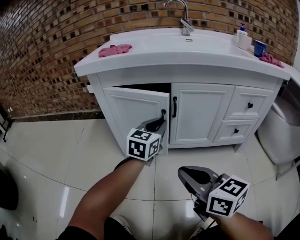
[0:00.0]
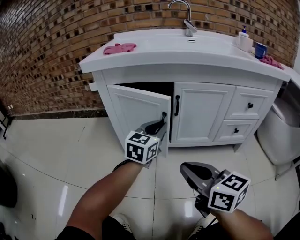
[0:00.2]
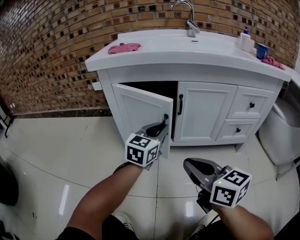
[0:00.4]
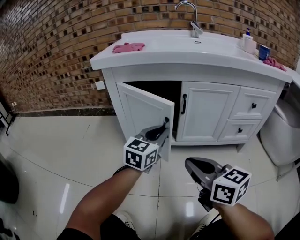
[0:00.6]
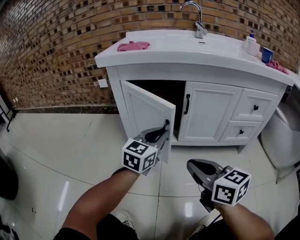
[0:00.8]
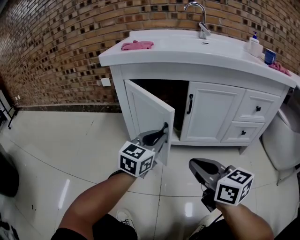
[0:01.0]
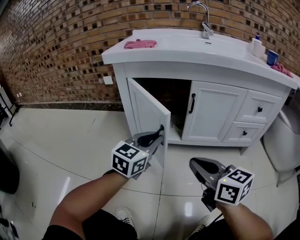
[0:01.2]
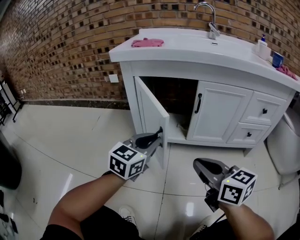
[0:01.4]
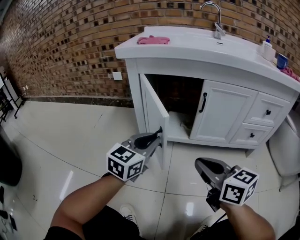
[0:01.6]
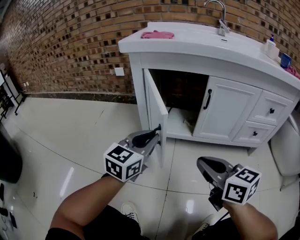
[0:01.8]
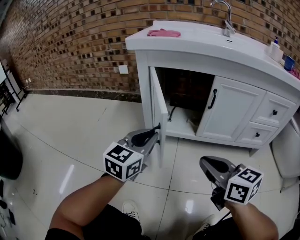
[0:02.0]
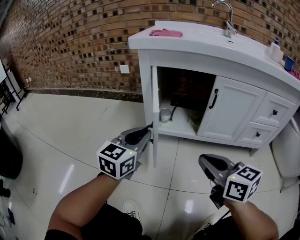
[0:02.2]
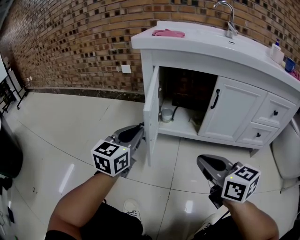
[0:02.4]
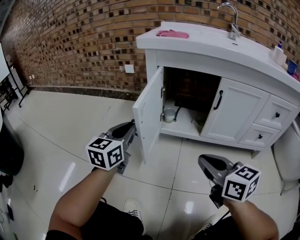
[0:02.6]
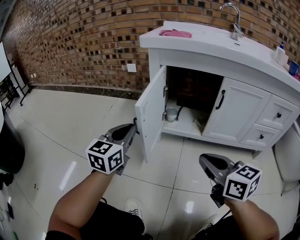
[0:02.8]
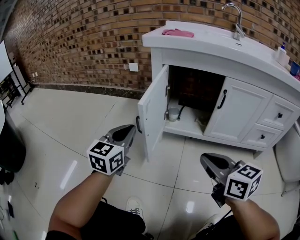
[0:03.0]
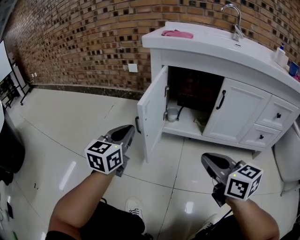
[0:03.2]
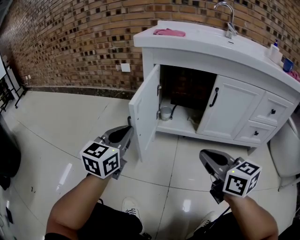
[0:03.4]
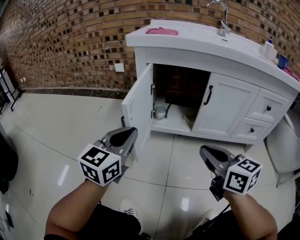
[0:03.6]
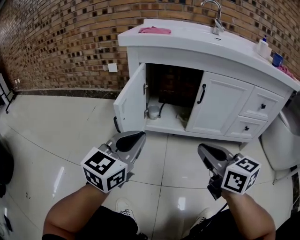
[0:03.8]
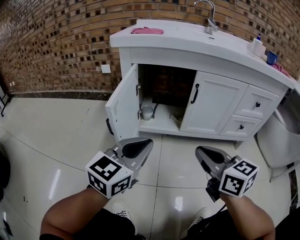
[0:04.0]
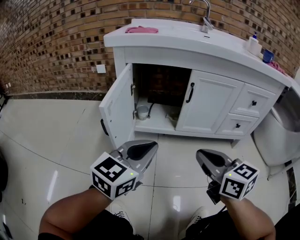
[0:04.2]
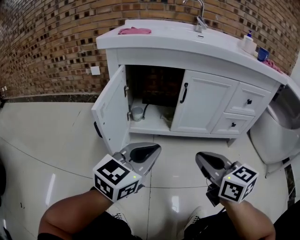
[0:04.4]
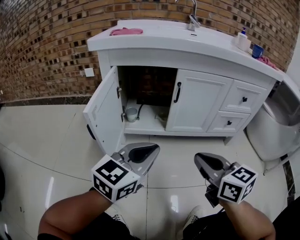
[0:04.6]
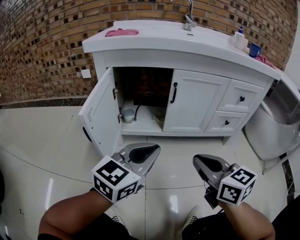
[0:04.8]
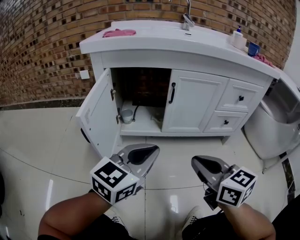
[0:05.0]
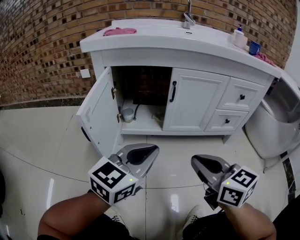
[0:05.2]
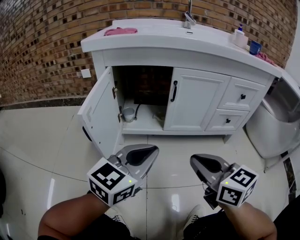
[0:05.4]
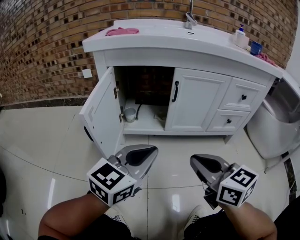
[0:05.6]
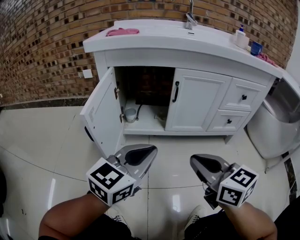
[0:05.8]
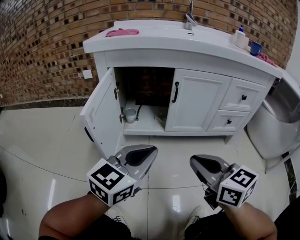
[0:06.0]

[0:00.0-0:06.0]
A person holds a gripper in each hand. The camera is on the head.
0:00.0 to 0:01.6: The left gripper is displaced to the left and backward by roughly 20 cm.
0:01.6 to 0:03.0: The right gripper moves to the left, about 5 cm. The left gripper moves to the left, approximately 15 cm.
0:03.0 to 0:04.4: The left gripper goes roughly 20 cm to the right, and turns by about 30 degrees. Meanwhile the right gripper heads to the right, covering roughly 10 cm.
0:04.4 to 0:06.0: The grippers move only a little.

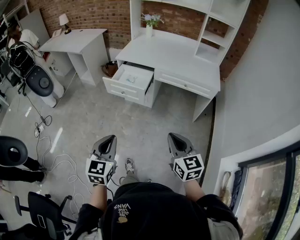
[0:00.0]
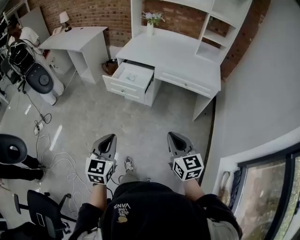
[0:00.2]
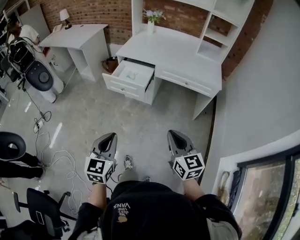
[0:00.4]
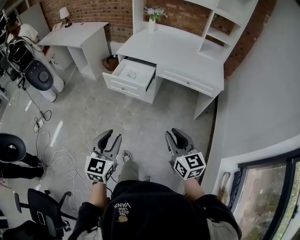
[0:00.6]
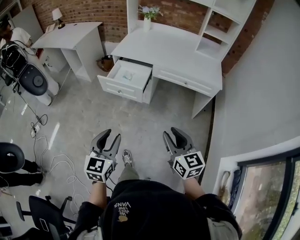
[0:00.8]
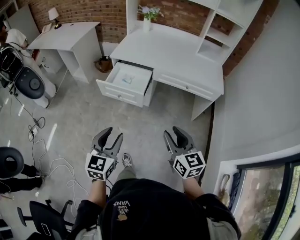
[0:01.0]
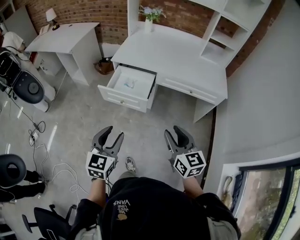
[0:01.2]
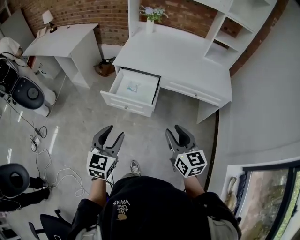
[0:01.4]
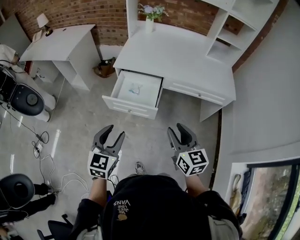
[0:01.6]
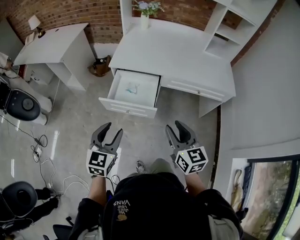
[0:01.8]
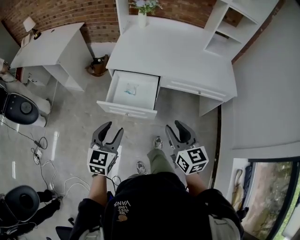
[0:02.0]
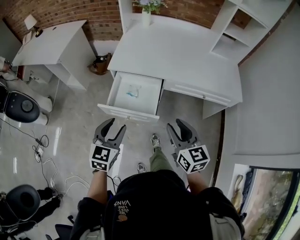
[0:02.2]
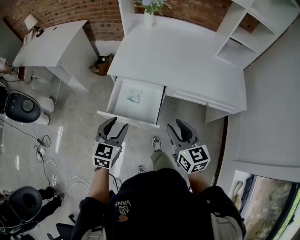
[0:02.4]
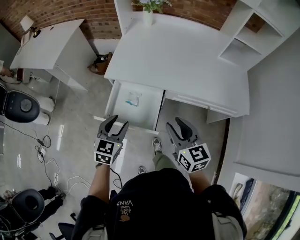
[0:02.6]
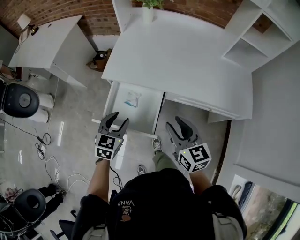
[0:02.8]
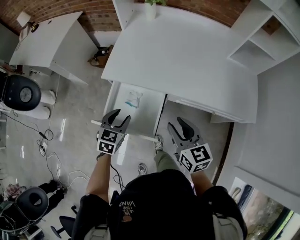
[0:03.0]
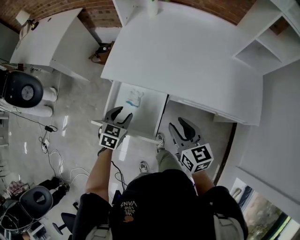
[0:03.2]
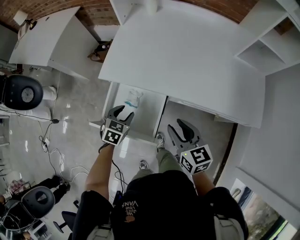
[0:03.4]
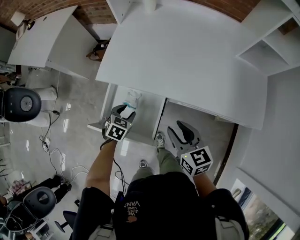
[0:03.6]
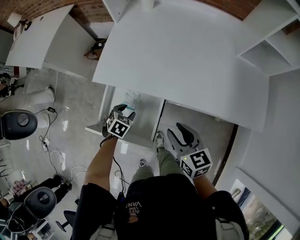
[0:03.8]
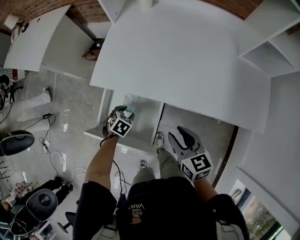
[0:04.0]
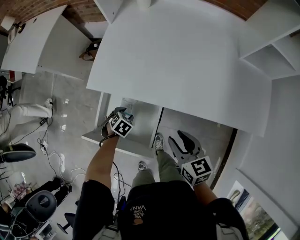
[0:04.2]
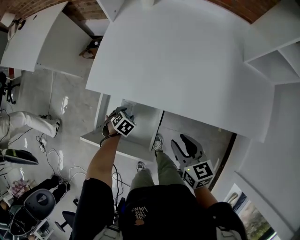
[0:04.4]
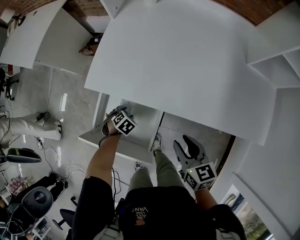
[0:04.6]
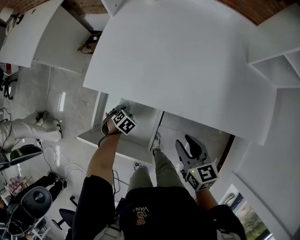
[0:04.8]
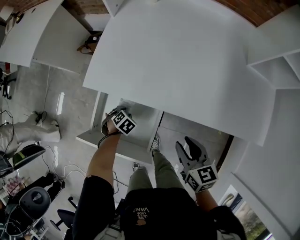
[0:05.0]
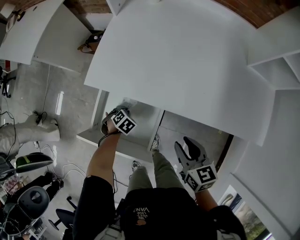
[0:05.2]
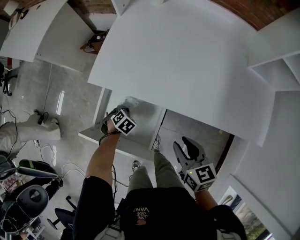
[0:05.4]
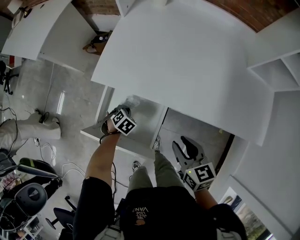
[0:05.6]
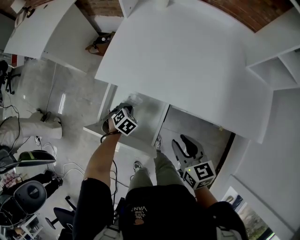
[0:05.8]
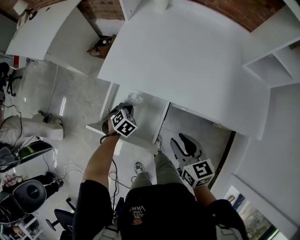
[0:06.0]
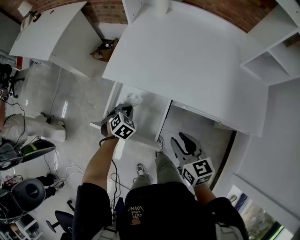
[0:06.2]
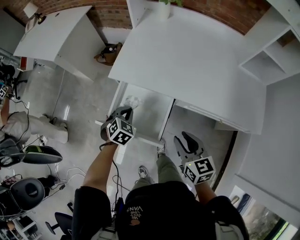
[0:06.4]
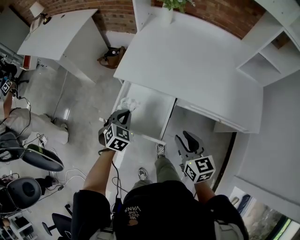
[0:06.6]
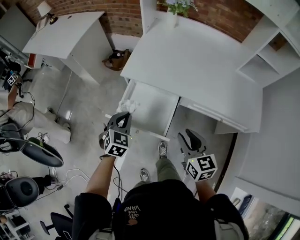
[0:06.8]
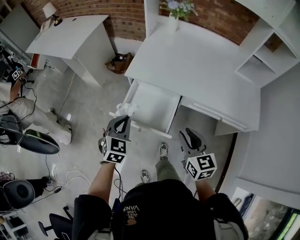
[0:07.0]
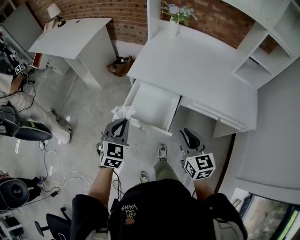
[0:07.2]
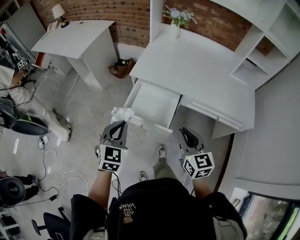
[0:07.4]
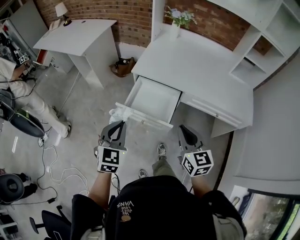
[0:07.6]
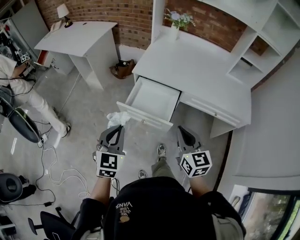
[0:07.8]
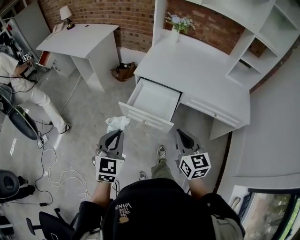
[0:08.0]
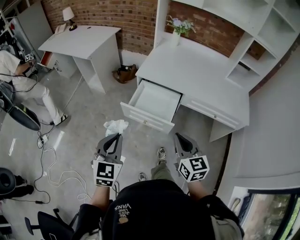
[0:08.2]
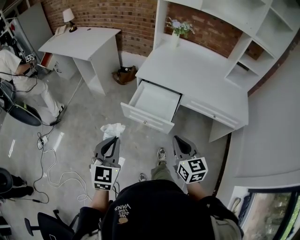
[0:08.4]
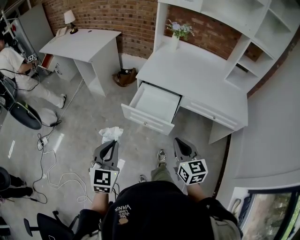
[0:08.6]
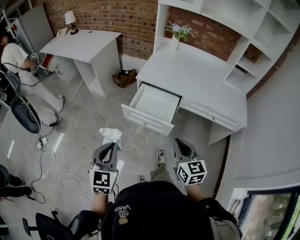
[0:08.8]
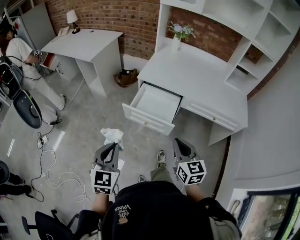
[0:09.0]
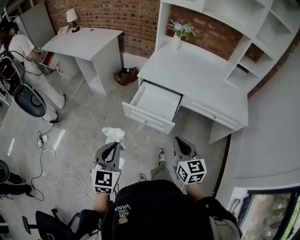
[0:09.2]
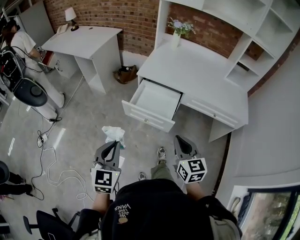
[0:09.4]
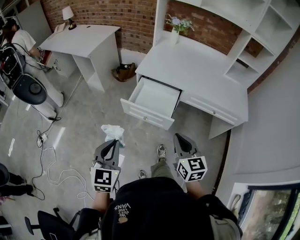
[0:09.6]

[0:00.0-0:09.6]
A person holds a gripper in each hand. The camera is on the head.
0:00.0 to 0:01.6: Both grippers move forward, about 30 cm. The left gripper opens up. The right gripper opens up.
0:01.6 to 0:03.2: The left gripper is displaced forward and downward by roughly 40 cm, and turns by about 30 degrees. The right gripper travels forward by some 30 cm.
0:03.2 to 0:04.8: The right gripper heads downward, covering roughly 10 cm. Meanwhile the left gripper heads downward, covering roughly 25 cm, and tips its fingers downward by approximately 40 degrees.
0:04.8 to 0:06.4: The right gripper moves roughly 15 cm, while the left gripper is displaced upward by some 20 cm, turns by roughly 30 degrees, and closes its fingers.
0:06.4 to 0:08.0: The right gripper is displaced backward, upward and to the left by about 25 cm, and closes up; the left gripper shifts some 40 cm backward, upward and to the left, and tilts its fingers approximately 30 degrees upward.
0:08.0 to 0:09.6: The right gripper shifts by about 5 cm. The left gripper travels backward by about 5 cm.

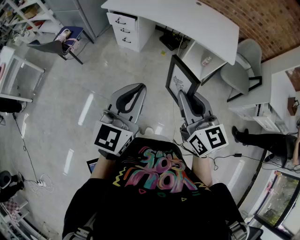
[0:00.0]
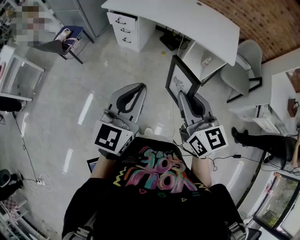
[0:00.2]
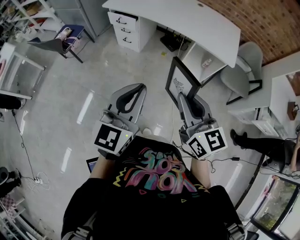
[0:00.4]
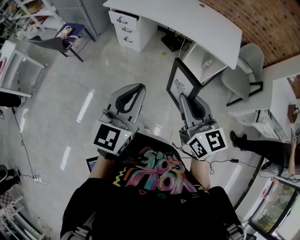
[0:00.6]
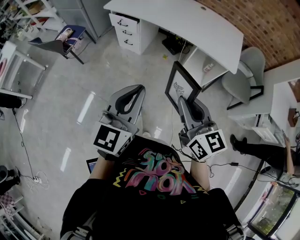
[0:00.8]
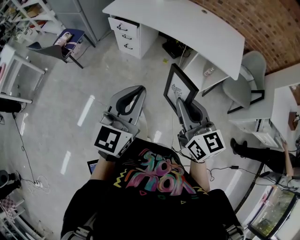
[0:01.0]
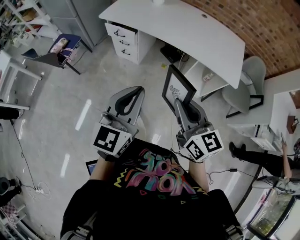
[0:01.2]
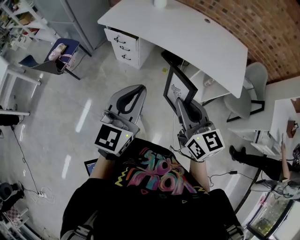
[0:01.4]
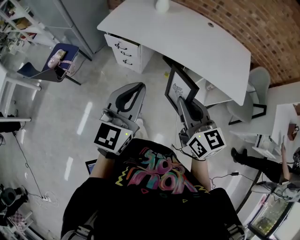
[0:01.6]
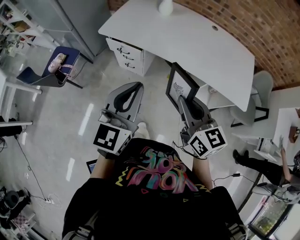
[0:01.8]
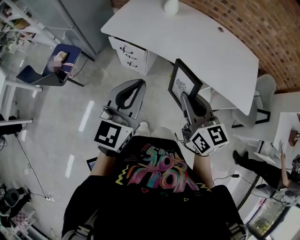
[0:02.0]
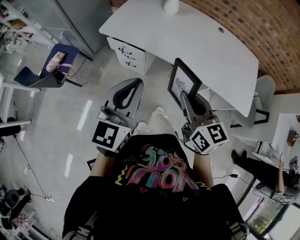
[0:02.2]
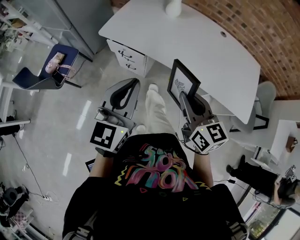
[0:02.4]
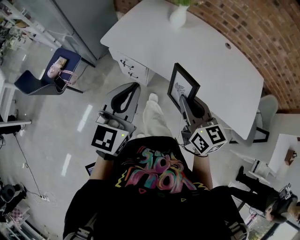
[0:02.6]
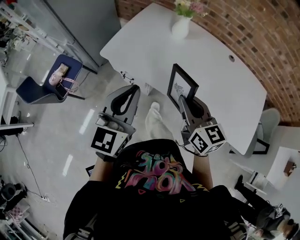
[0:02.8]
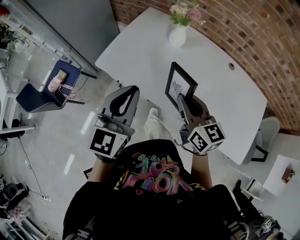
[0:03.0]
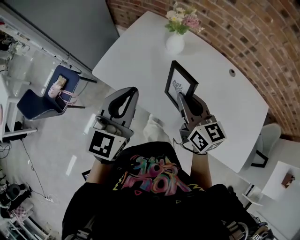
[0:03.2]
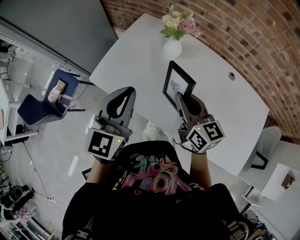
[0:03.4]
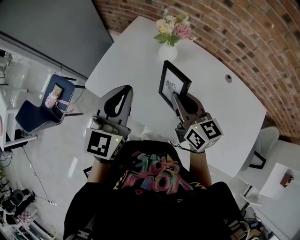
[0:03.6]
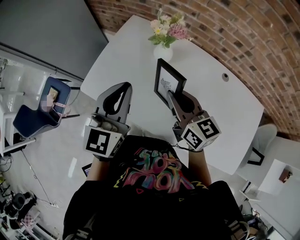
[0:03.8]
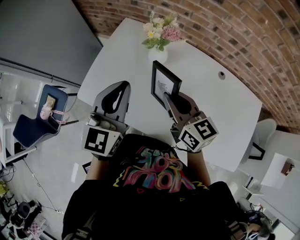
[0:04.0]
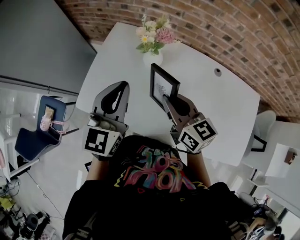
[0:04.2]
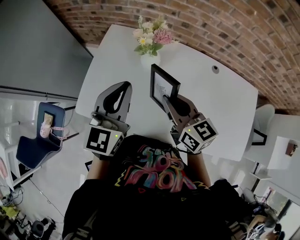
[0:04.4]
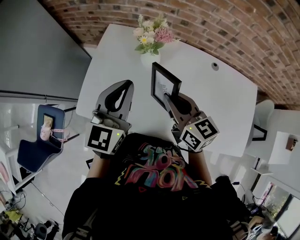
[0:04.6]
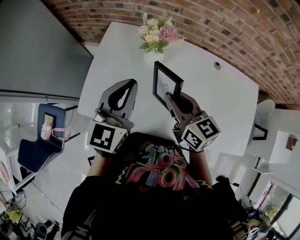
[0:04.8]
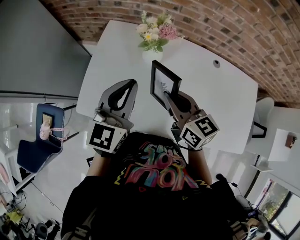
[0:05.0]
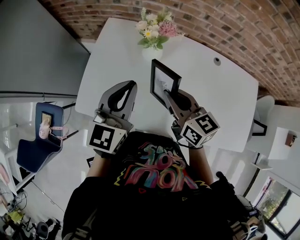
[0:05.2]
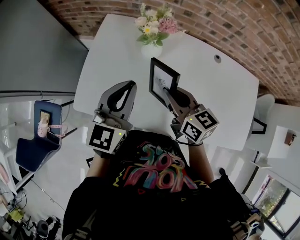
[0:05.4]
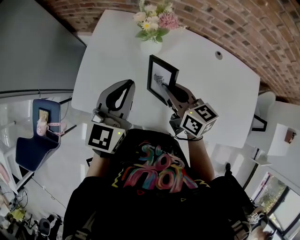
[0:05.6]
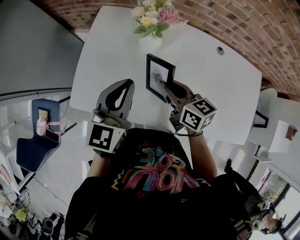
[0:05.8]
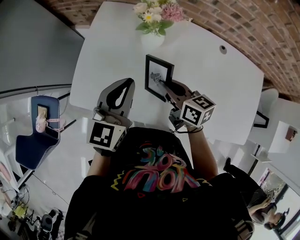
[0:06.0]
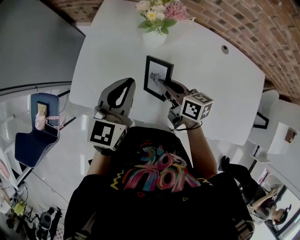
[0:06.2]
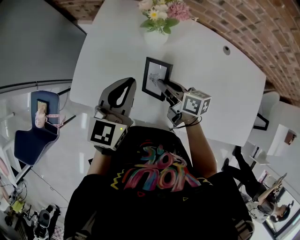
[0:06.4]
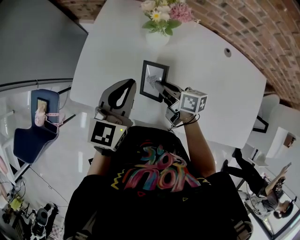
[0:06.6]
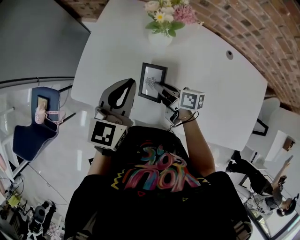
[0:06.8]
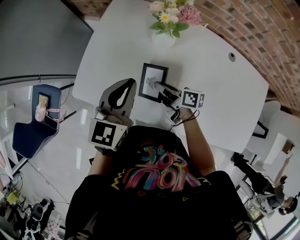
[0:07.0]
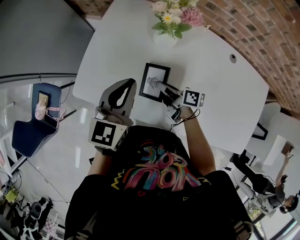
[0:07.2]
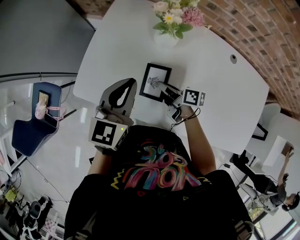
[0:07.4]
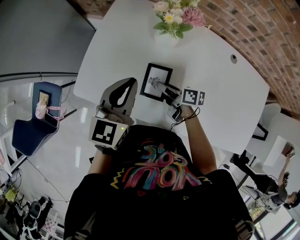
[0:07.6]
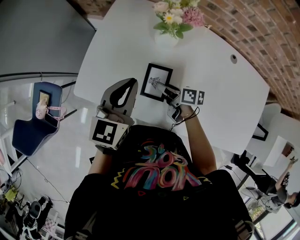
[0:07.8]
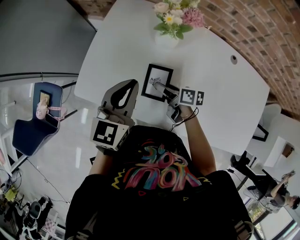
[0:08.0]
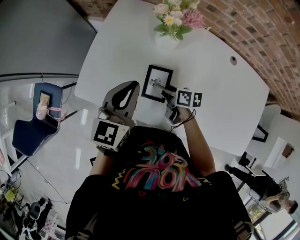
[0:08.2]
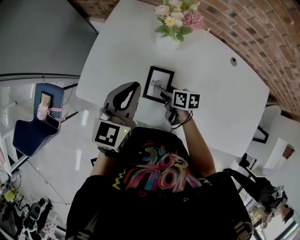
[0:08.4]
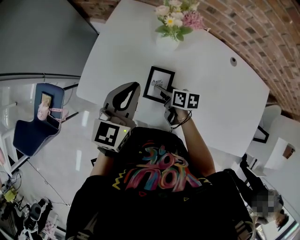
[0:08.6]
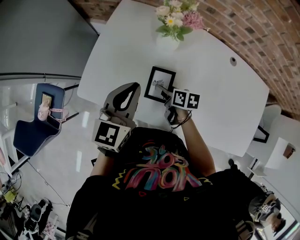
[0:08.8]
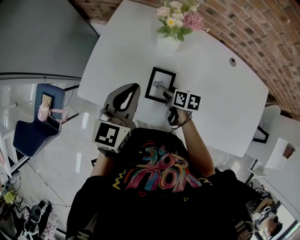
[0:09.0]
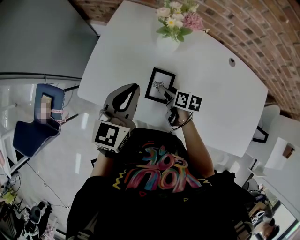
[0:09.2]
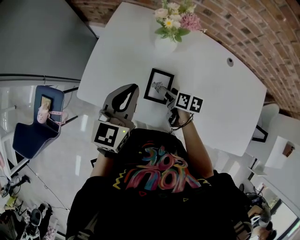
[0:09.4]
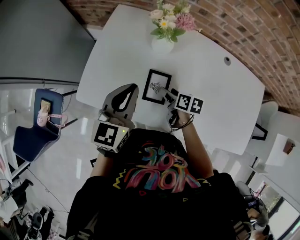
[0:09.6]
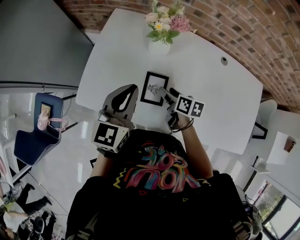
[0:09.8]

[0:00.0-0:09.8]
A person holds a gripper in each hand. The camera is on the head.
0:00.0 to 0:01.4: Both grippers move forward, about 25 cm.
0:01.4 to 0:02.8: The pair of grippers is taken forward, some 40 cm.
0:02.8 to 0:04.2: Both grippers move forward, approximately 30 cm.
0:04.2 to 0:05.6: Both grippers travel together downward, some 5 cm.
0:05.6 to 0:07.0: The right gripper shifts about 15 cm downward, and turns by some 40 degrees, while the left gripper heads downward, covering about 5 cm.
0:07.0 to 0:08.4: The right gripper turns by approximately 20 degrees, and opens its fingers.
0:08.4 to 0:09.8: The right gripper changes place by approximately 5 cm.
